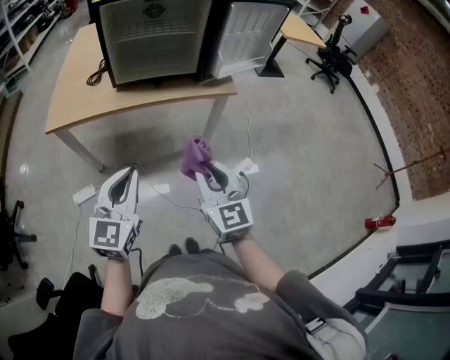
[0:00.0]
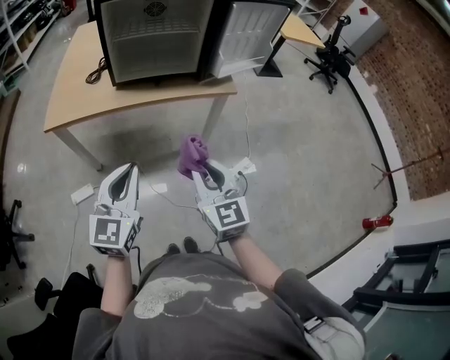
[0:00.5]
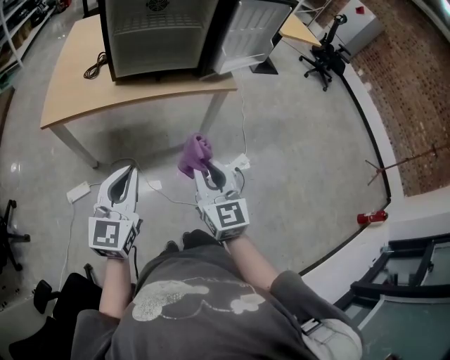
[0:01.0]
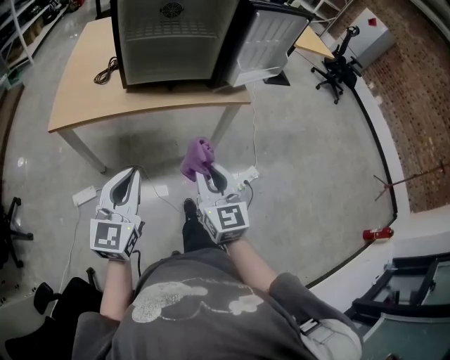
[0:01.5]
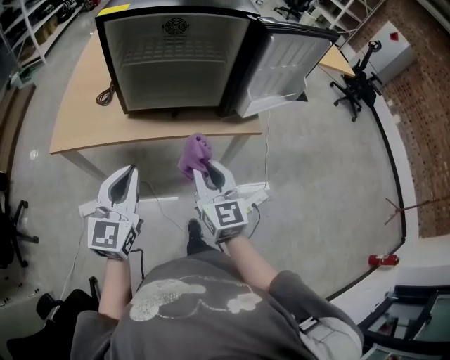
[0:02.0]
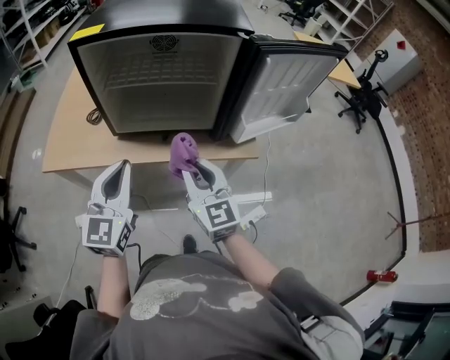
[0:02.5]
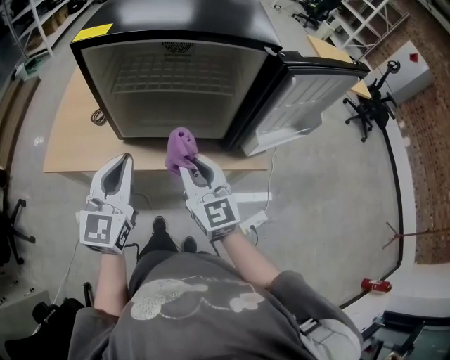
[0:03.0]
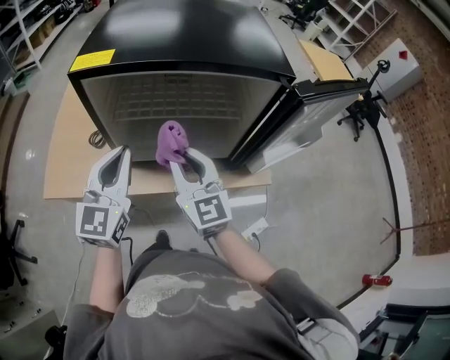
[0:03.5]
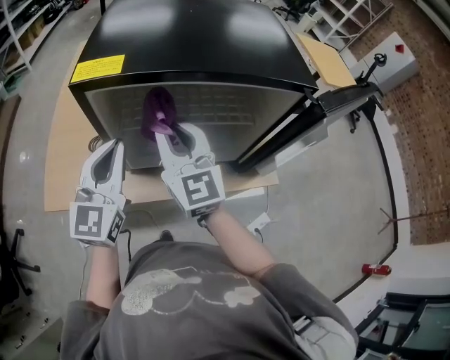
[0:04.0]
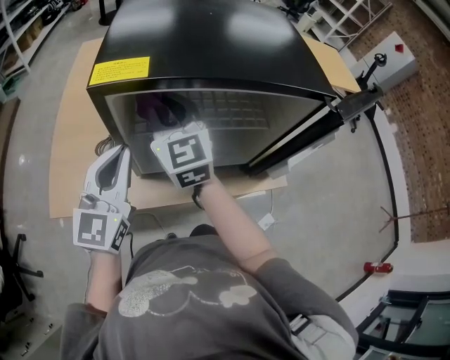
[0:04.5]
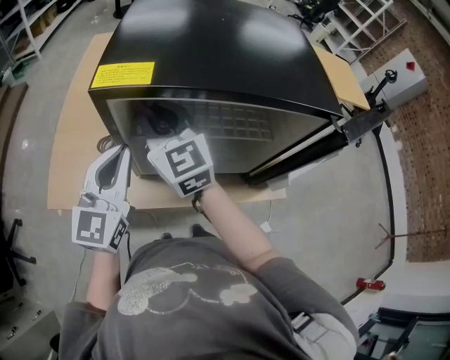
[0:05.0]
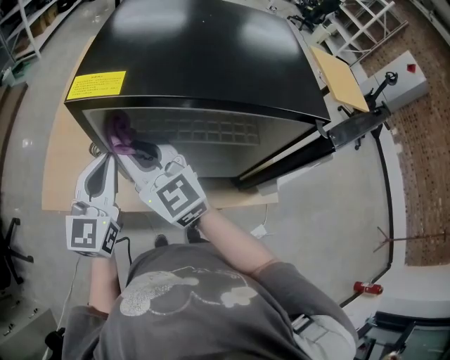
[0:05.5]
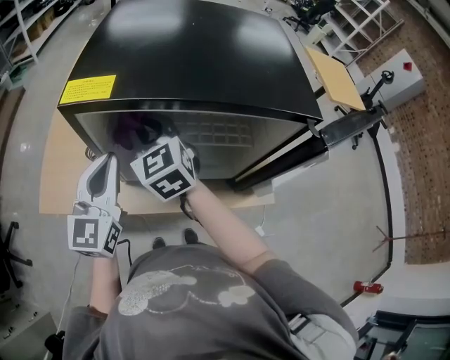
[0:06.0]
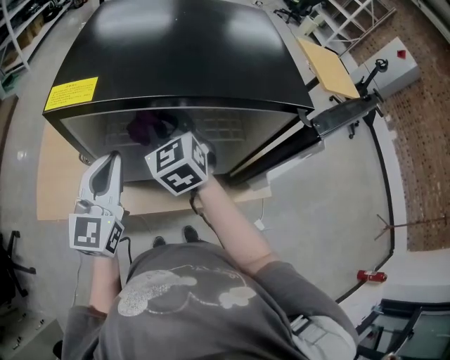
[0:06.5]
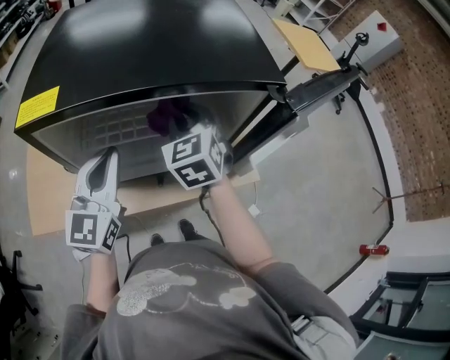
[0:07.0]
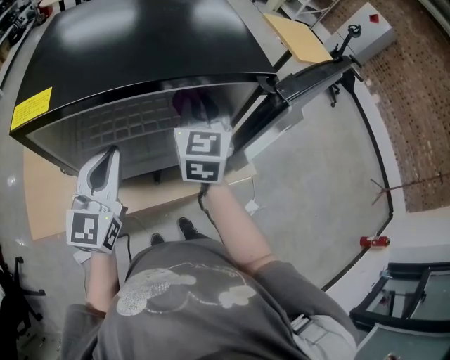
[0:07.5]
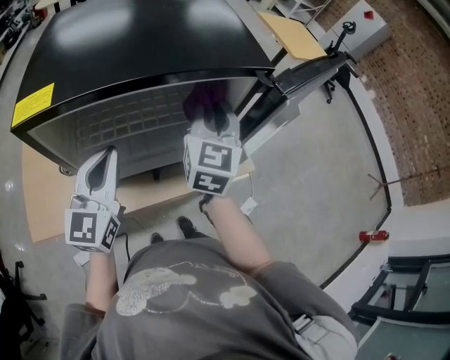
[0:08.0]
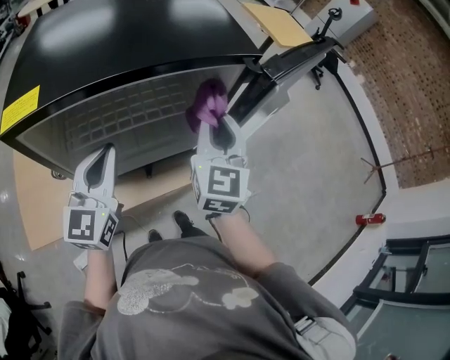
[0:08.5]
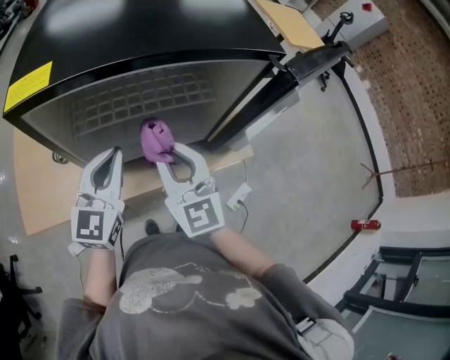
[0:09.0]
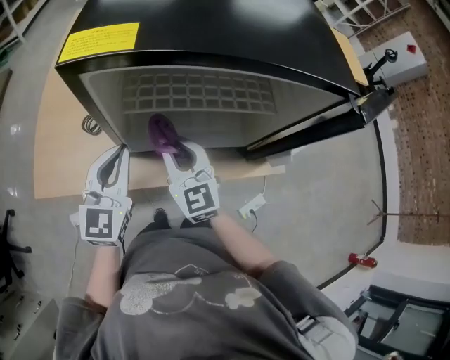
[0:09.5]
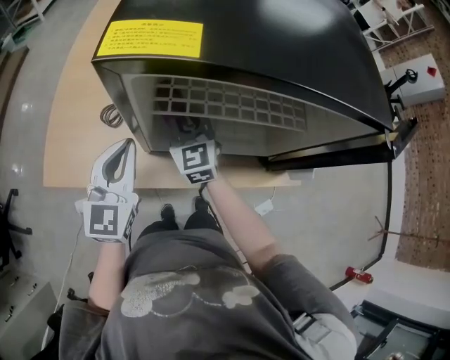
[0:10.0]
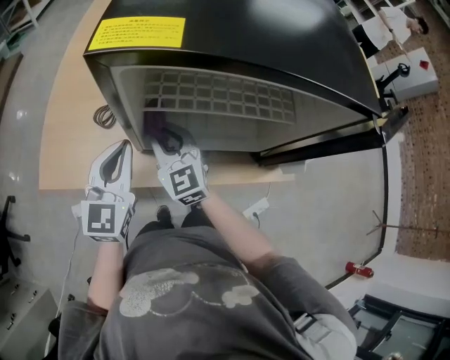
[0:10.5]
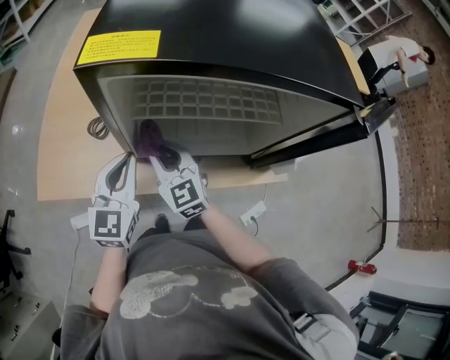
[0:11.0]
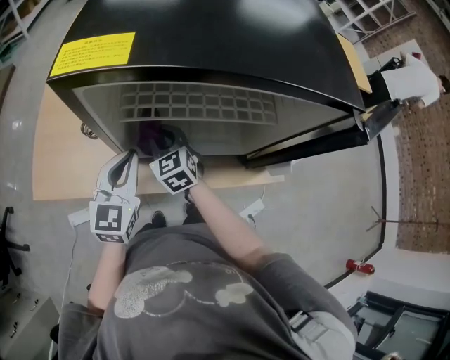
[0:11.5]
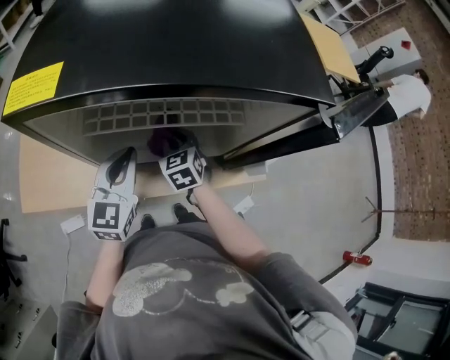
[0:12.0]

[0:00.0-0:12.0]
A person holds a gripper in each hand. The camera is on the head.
0:00.0 to 0:02.0: Both grippers move forward, approximately 20 cm.
0:02.0 to 0:04.0: The right gripper shifts about 30 cm forward and to the left. Meanwhile the left gripper travels forward by roughly 30 cm.
0:04.0 to 0:06.0: The right gripper moves forward, some 5 cm, and changes its angle by about 30 degrees.
0:06.0 to 0:08.0: The right gripper ends up roughly 30 cm from where it was, and turns by some 50 degrees. Meanwhile the left gripper shifts by about 10 cm.
0:08.0 to 0:10.0: The left gripper ends up about 15 cm from where it was, while the right gripper changes place by about 35 cm, and changes its angle by some 40 degrees.
0:10.0 to 0:12.0: The left gripper heads to the right, covering roughly 15 cm. Meanwhile the right gripper goes about 15 cm to the right and downward, and swivels approximately 30 degrees.

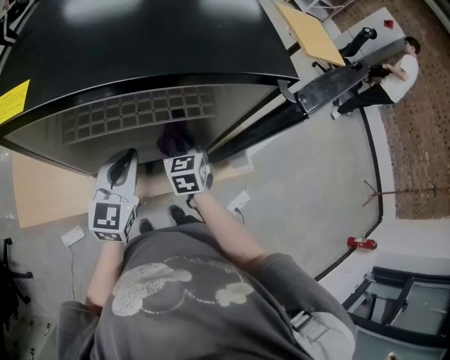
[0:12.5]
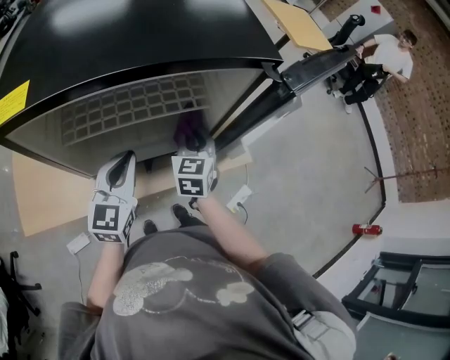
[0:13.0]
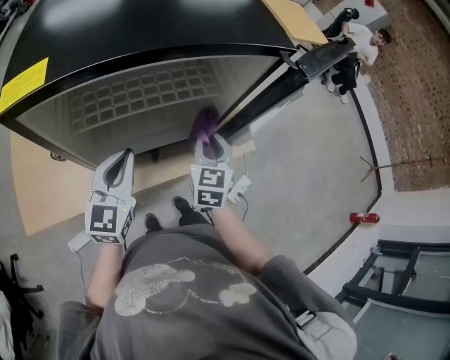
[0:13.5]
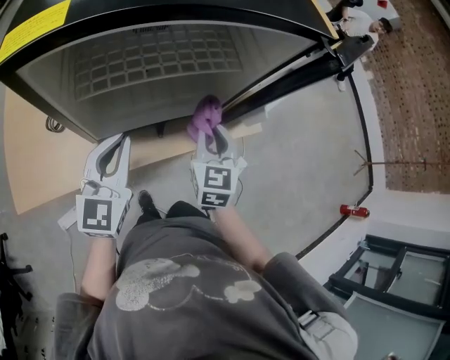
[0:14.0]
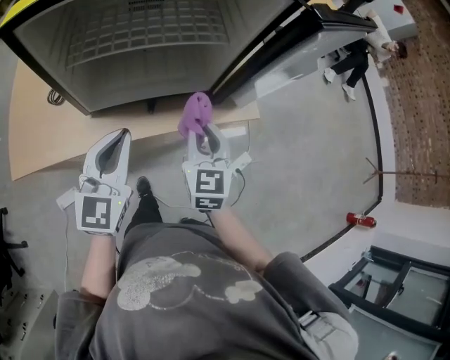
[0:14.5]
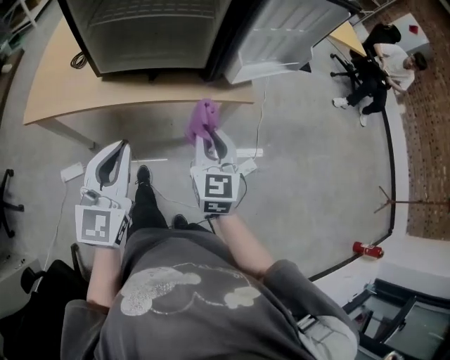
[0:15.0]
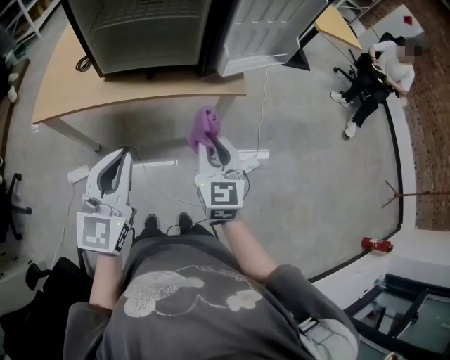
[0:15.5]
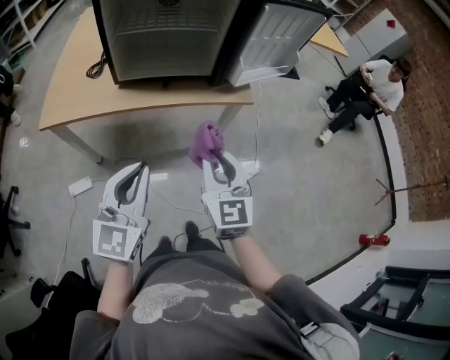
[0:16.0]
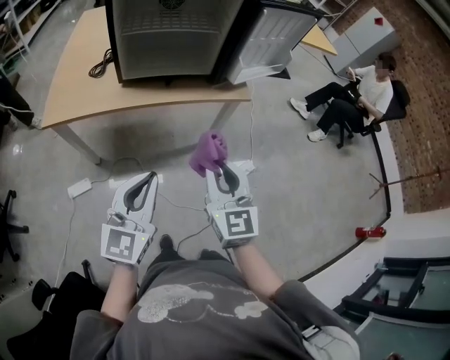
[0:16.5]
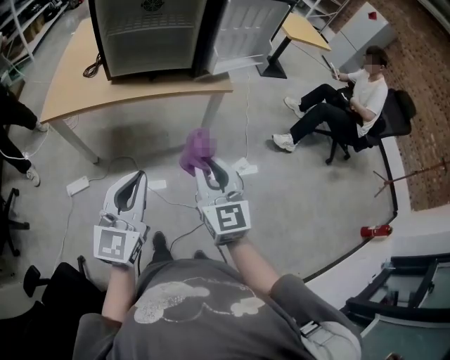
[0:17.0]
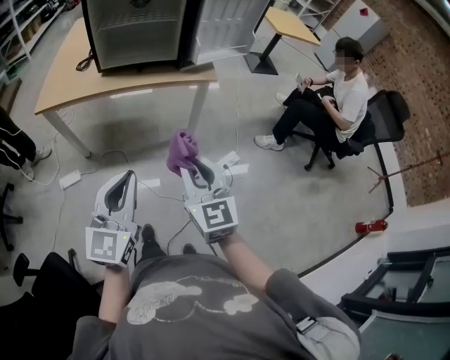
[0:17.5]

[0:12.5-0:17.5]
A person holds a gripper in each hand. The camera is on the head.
0:12.5 to 0:15.0: The right gripper heads backward and to the right, covering about 30 cm. Meanwhile the left gripper goes some 30 cm backward.
0:15.0 to 0:17.5: Both grippers travel together backward, roughly 30 cm.

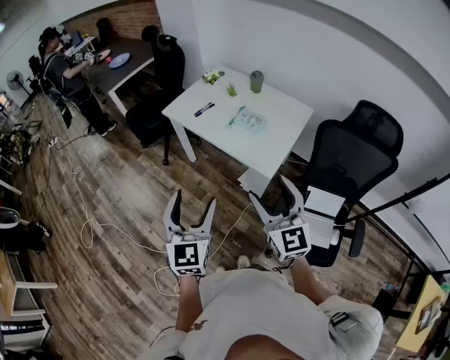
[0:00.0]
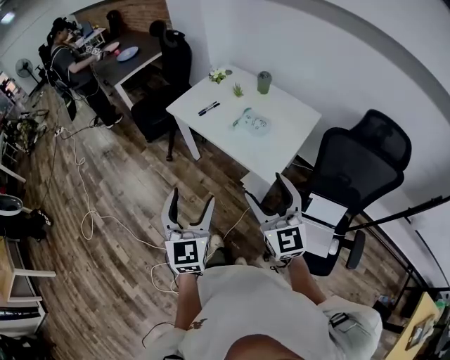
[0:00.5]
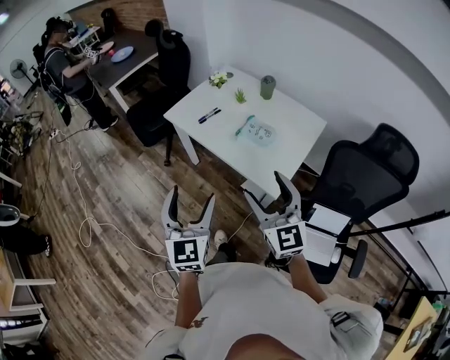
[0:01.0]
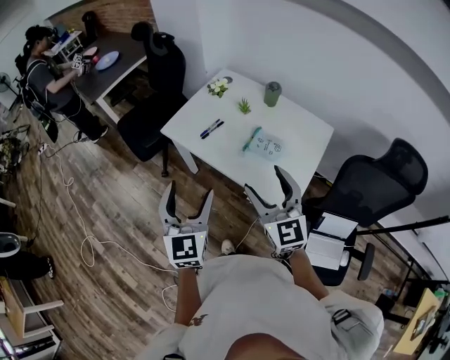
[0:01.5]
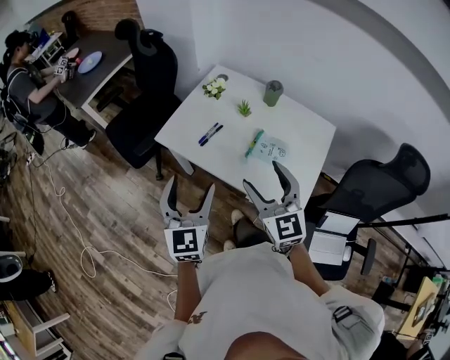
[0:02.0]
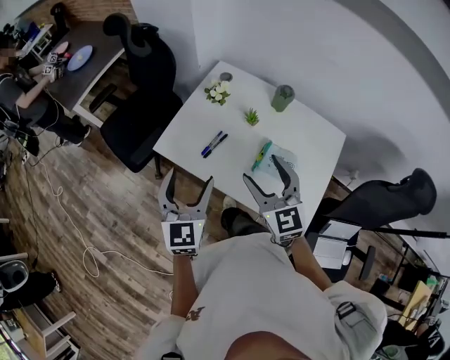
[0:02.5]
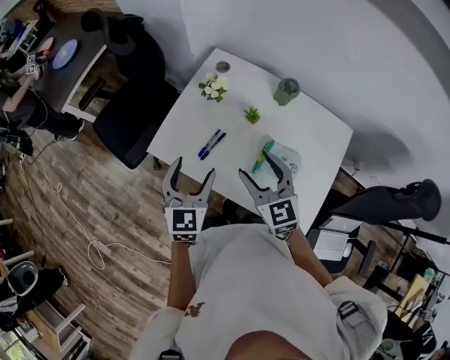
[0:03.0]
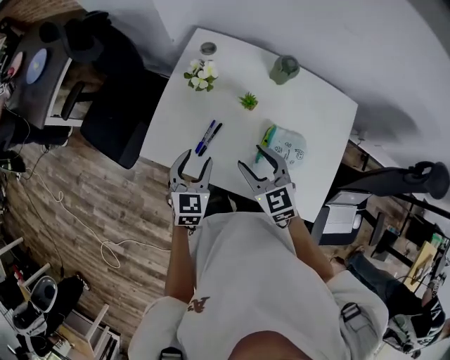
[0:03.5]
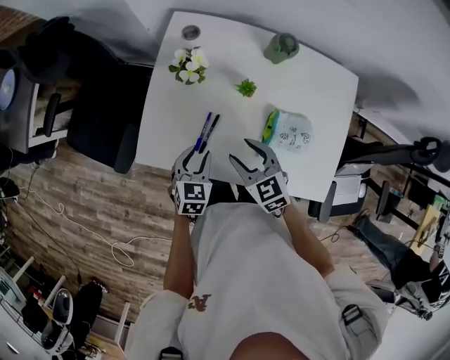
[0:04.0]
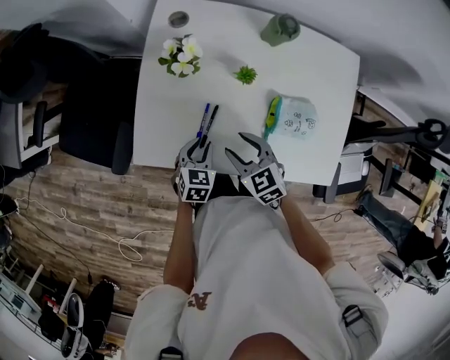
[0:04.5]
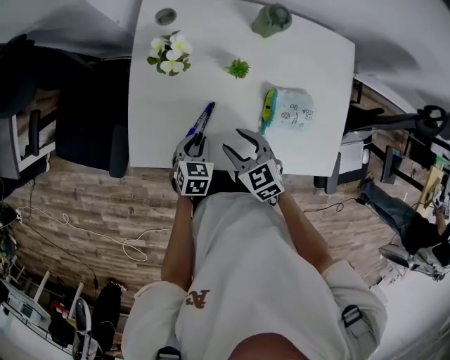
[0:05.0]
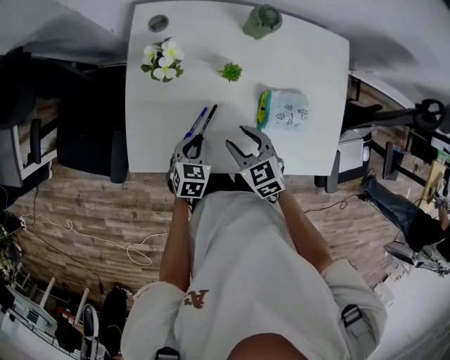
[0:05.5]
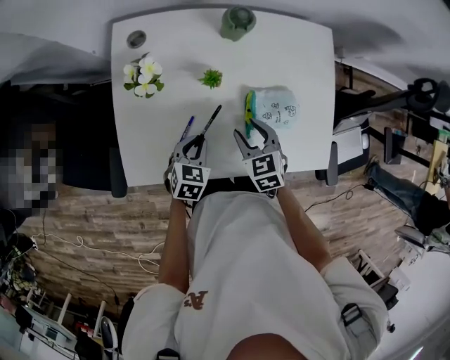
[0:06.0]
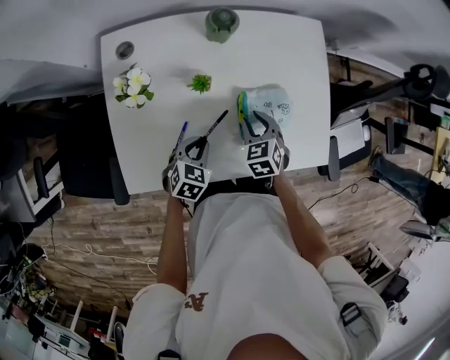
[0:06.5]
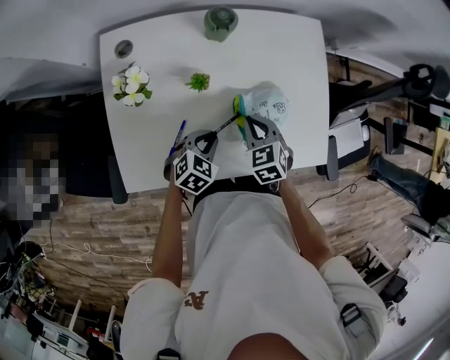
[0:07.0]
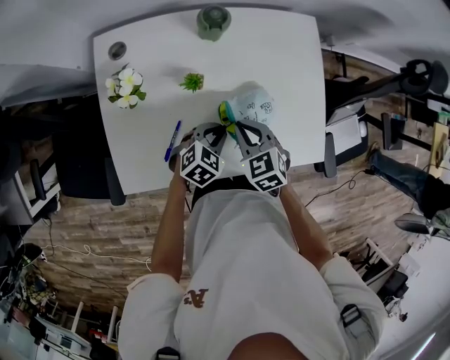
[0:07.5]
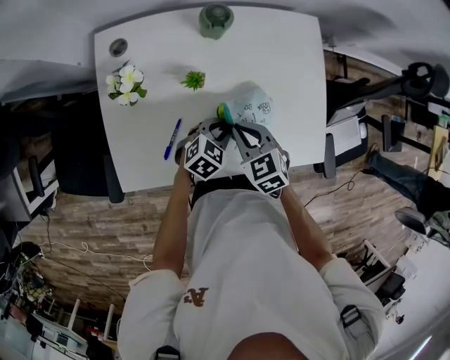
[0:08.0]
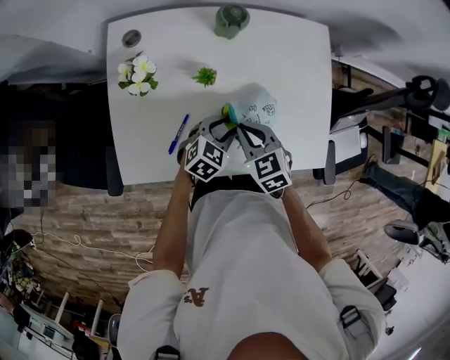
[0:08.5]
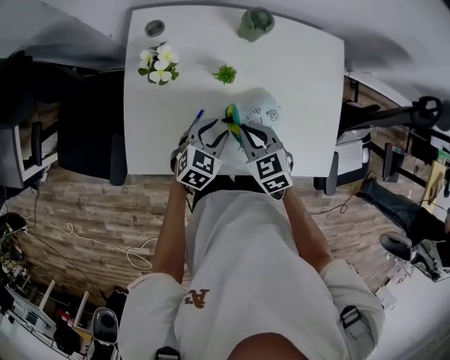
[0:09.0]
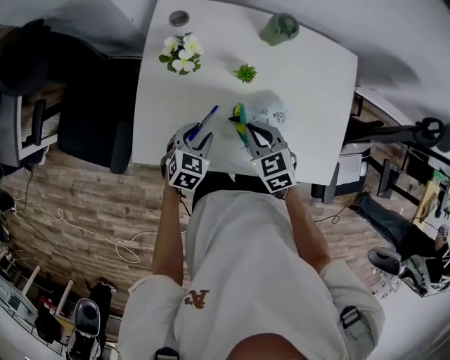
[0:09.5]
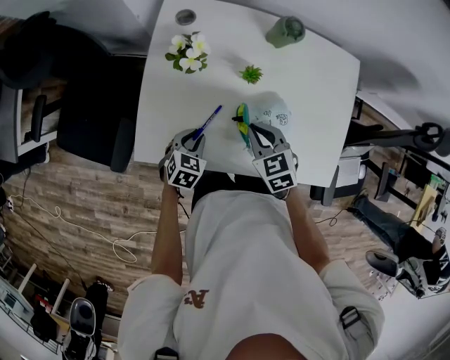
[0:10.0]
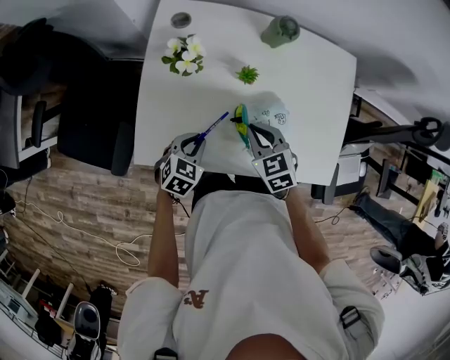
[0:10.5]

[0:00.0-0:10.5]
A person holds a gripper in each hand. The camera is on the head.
0:00.0 to 0:02.0: The grippers both shift forward by about 35 cm.
0:02.0 to 0:04.0: The right gripper shifts some 35 cm forward and downward, and angles its fingers downward, by about 30 degrees. The left gripper goes some 40 cm downward and forward, tips its fingers downward by approximately 40 degrees, and closes up.
0:04.0 to 0:06.5: The right gripper moves roughly 15 cm, and turns by approximately 40 degrees; the left gripper ends up roughly 10 cm from where it was, and rotates roughly 30 degrees.
0:06.5 to 0:08.5: The right gripper shifts roughly 5 cm upward, and closes up, while the left gripper is displaced to the right and forward by about 10 cm.
0:08.5 to 0:10.5: The right gripper shifts about 5 cm to the left, while the left gripper goes some 15 cm to the left.
